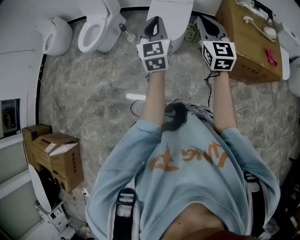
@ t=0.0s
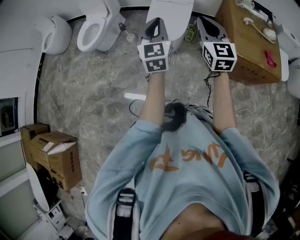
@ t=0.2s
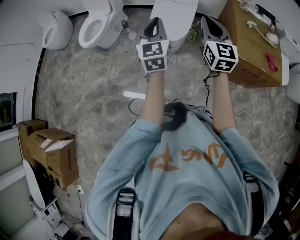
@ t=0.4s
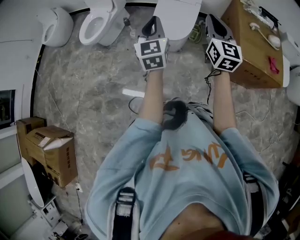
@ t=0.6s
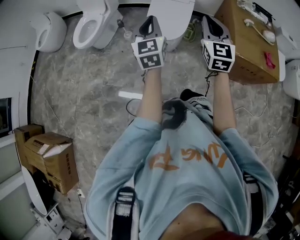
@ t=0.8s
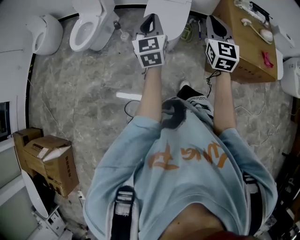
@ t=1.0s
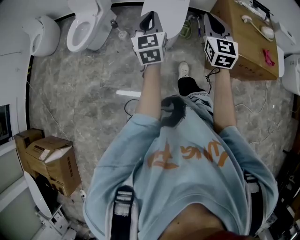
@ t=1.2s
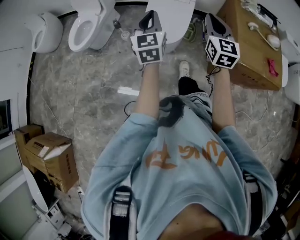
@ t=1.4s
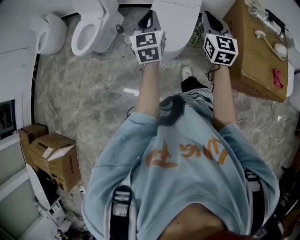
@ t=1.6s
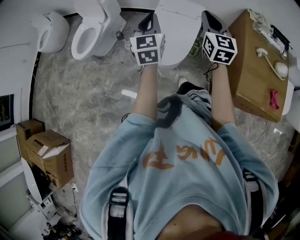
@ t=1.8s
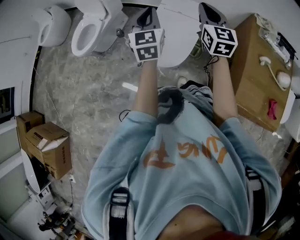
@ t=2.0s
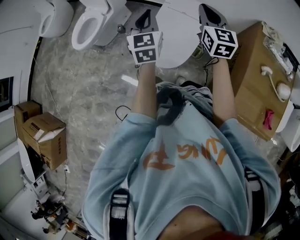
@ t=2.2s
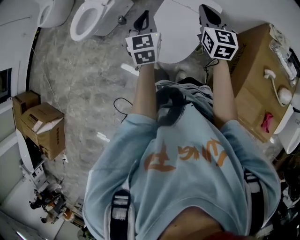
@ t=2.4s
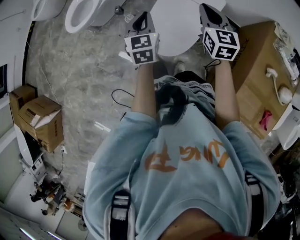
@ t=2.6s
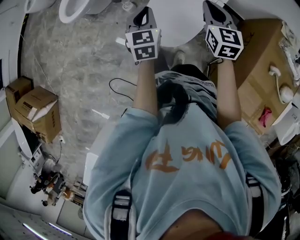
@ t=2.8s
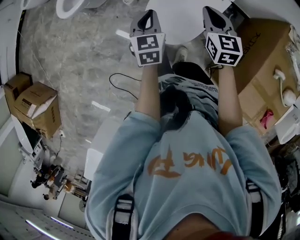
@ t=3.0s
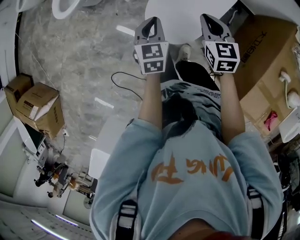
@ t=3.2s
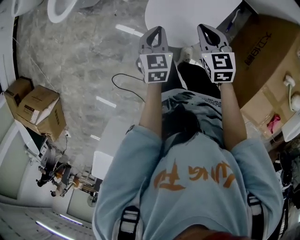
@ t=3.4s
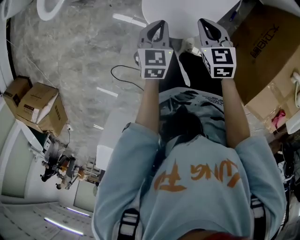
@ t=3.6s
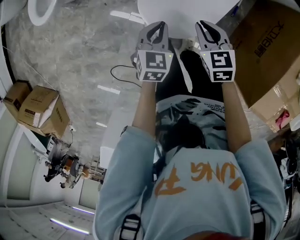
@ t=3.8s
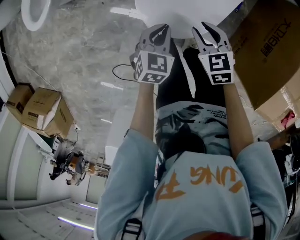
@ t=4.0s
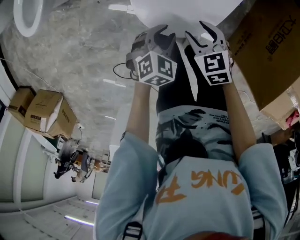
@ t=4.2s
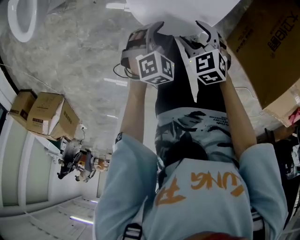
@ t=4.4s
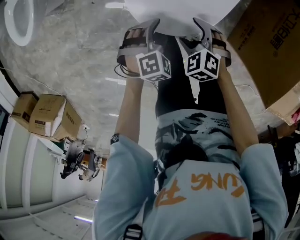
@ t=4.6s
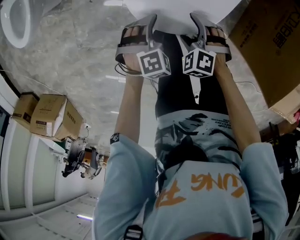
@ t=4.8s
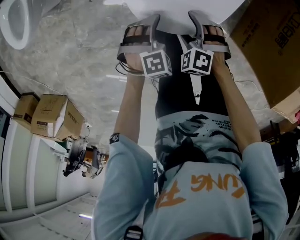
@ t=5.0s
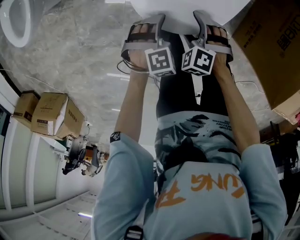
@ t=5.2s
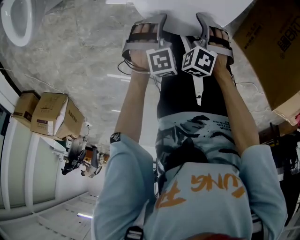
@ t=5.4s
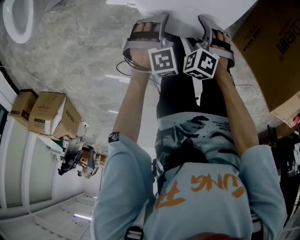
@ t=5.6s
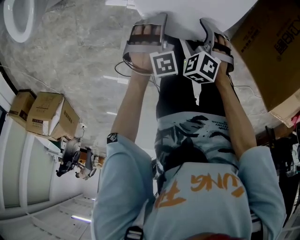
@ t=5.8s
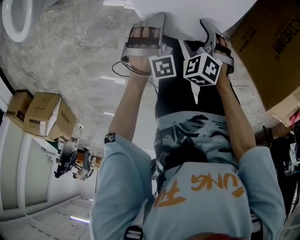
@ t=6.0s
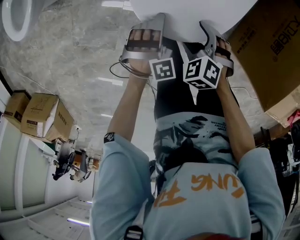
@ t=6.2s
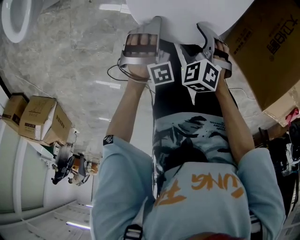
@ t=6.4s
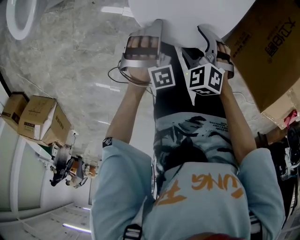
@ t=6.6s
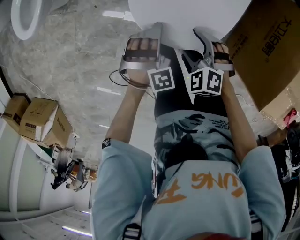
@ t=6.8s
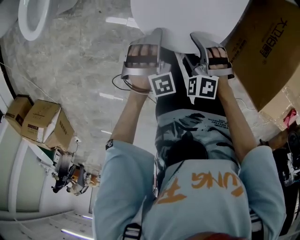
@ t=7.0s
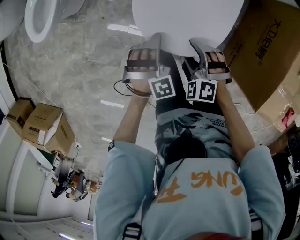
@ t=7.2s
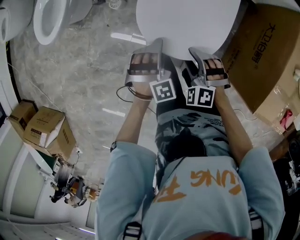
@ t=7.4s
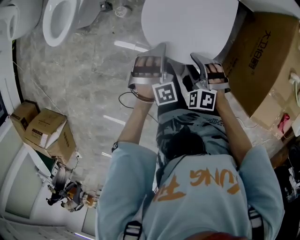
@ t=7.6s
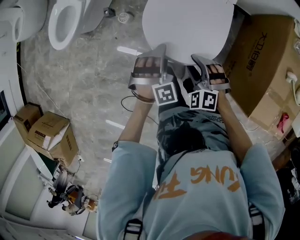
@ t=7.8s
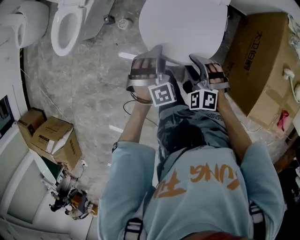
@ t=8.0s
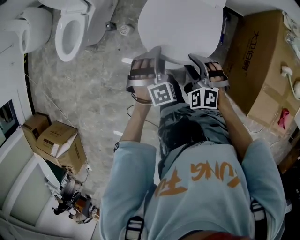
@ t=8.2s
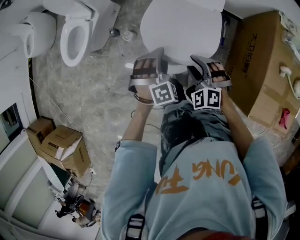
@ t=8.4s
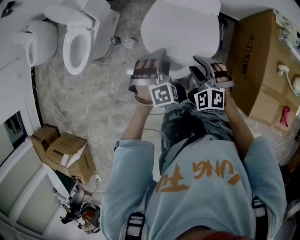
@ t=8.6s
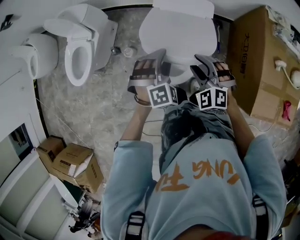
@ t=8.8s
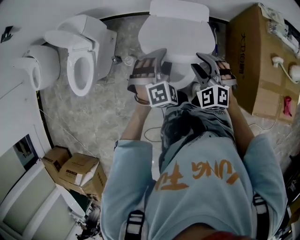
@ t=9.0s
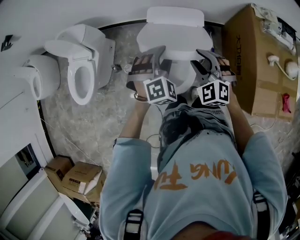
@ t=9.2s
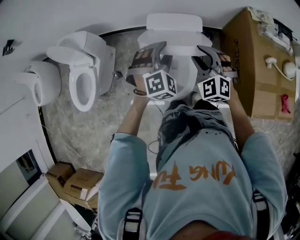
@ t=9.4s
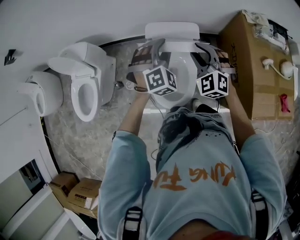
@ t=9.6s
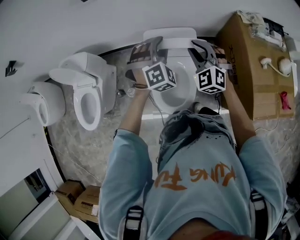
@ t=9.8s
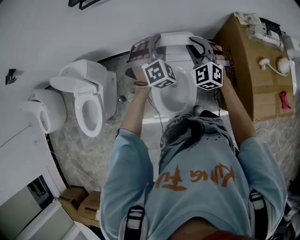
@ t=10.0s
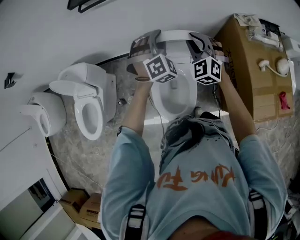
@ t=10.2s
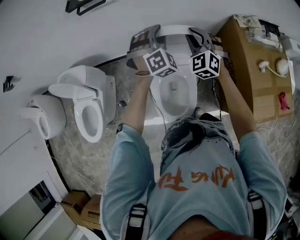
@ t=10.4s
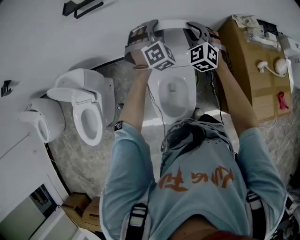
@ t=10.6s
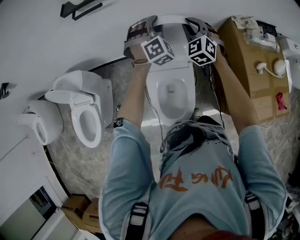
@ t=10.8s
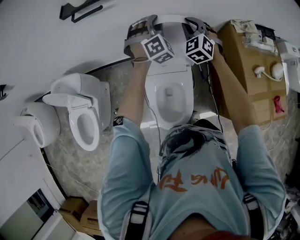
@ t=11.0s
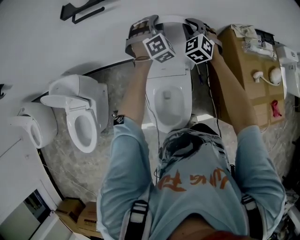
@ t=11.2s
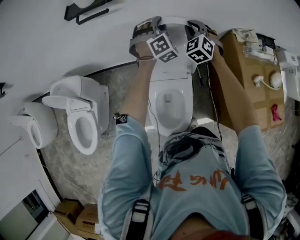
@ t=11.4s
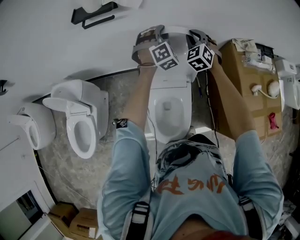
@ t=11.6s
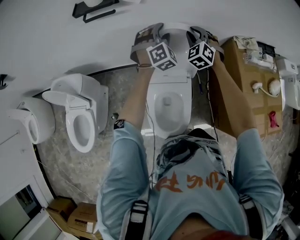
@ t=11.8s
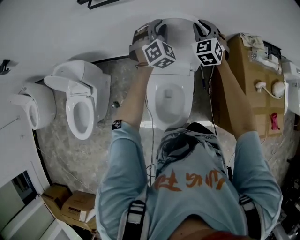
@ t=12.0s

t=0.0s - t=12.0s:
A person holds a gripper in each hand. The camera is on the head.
t=0.0s - t=1.6s: Both grippers move forward, approximately 20 cm.
t=1.6s - t=3.0s: The right gripper goes about 30 cm forward and downward, and swivels approximately 30 degrees. The left gripper travels downward and forward by about 30 cm, and turns by approximately 30 degrees.
t=3.0s - t=4.4s: Both grippers move downward, about 30 cm. The left gripper points its fingers about 30 degrees further downward, and opens up; the right gripper angles its fingers downward, by about 30 degrees, and opens its fingers.
t=4.4s - t=6.0s: The right gripper changes its angle by some 20 degrees. The left gripper shifts by approximately 5 cm, and turns by about 30 degrees.
t=6.0s - t=7.6s: Both grippers move upward, roughly 20 cm. The right gripper rotates roughly 30 degrees, and closes up.
t=7.6s - t=9.0s: Both grippers travel together upward, forward and to the right, approximately 25 cm. The left gripper changes its angle by some 20 degrees. Meanwhile the right gripper rotates about 30 degrees.
t=9.0s - t=10.4s: Both grippers travel together forward, roughly 25 cm. The right gripper rotates about 30 degrees.
t=10.4s - t=12.0s: The grippers both shift forward by about 10 cm.

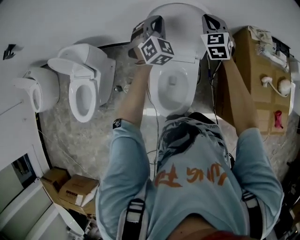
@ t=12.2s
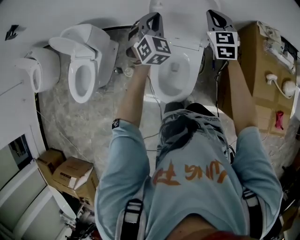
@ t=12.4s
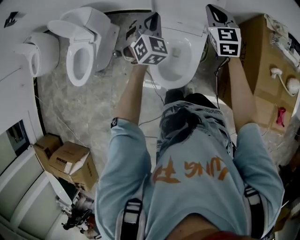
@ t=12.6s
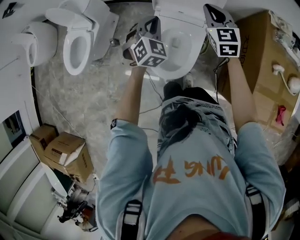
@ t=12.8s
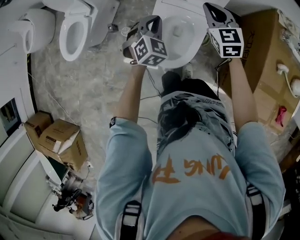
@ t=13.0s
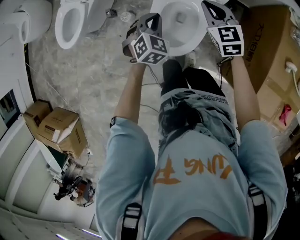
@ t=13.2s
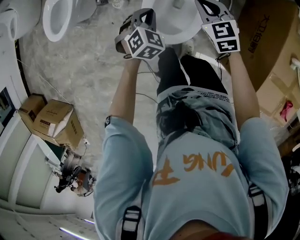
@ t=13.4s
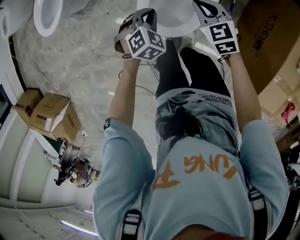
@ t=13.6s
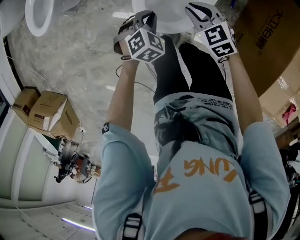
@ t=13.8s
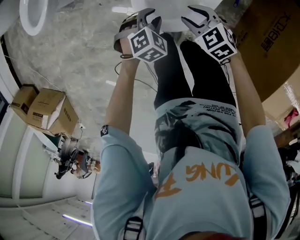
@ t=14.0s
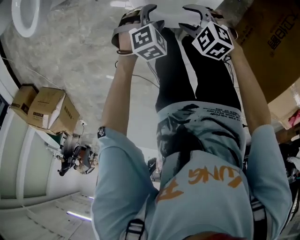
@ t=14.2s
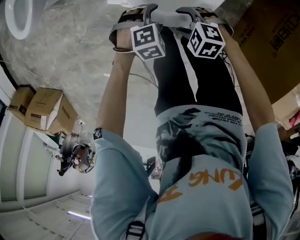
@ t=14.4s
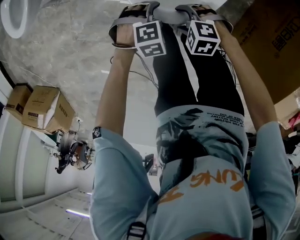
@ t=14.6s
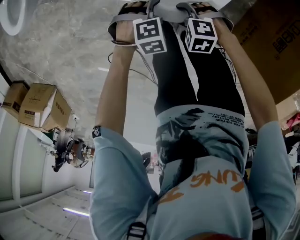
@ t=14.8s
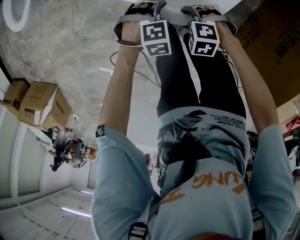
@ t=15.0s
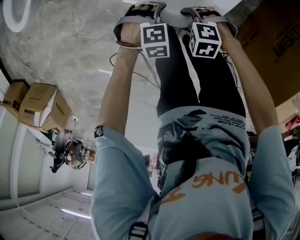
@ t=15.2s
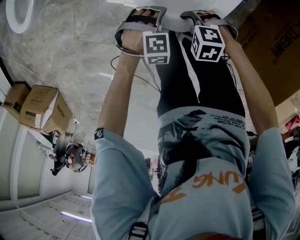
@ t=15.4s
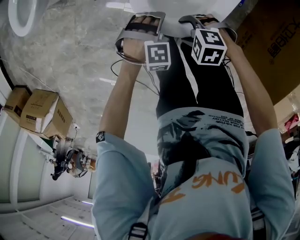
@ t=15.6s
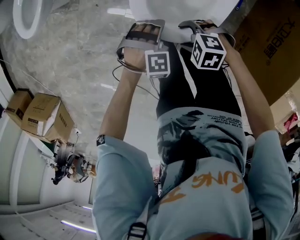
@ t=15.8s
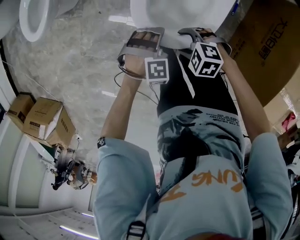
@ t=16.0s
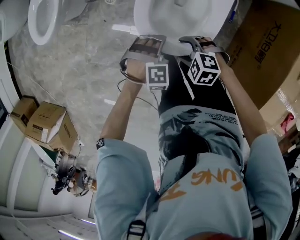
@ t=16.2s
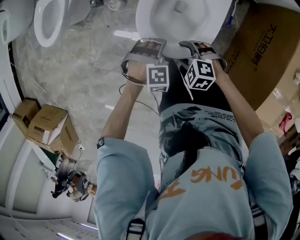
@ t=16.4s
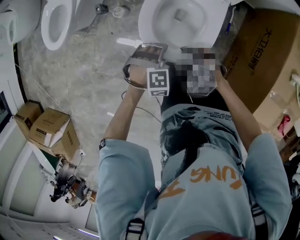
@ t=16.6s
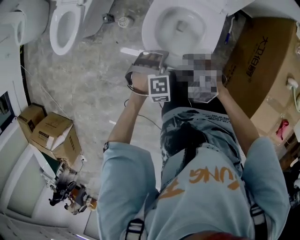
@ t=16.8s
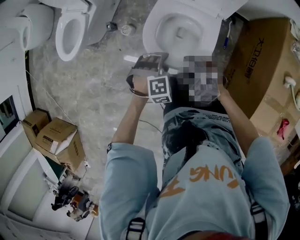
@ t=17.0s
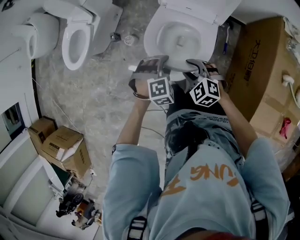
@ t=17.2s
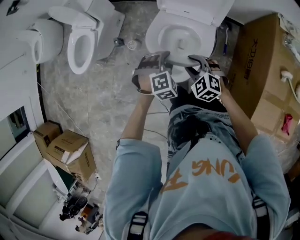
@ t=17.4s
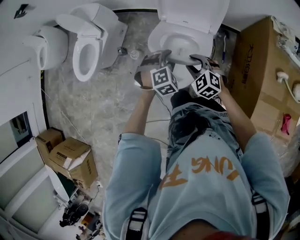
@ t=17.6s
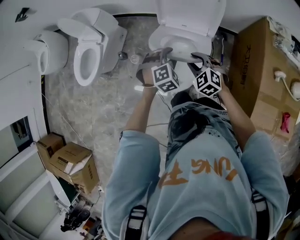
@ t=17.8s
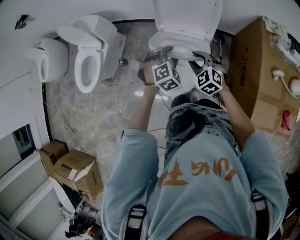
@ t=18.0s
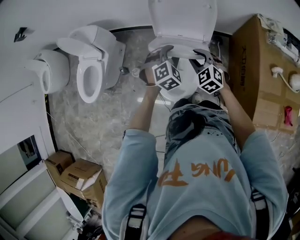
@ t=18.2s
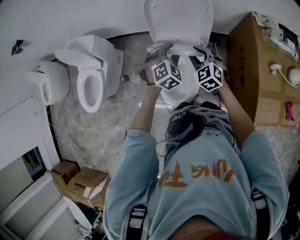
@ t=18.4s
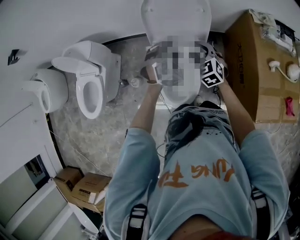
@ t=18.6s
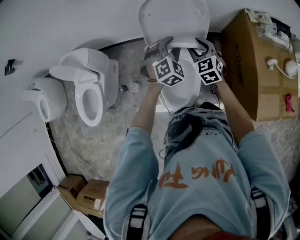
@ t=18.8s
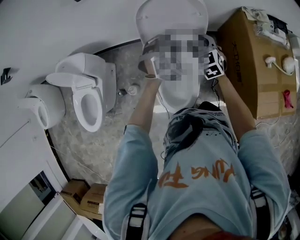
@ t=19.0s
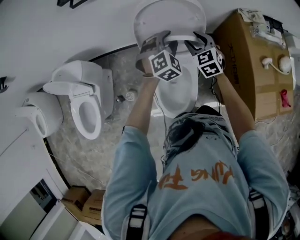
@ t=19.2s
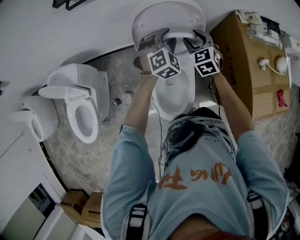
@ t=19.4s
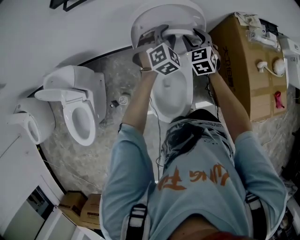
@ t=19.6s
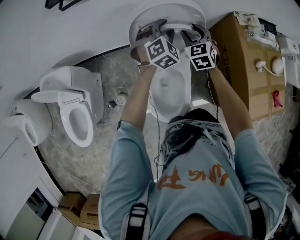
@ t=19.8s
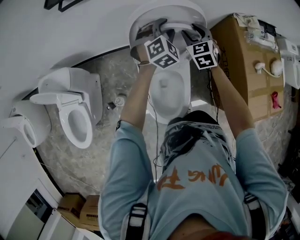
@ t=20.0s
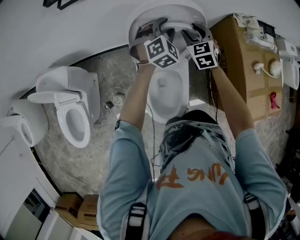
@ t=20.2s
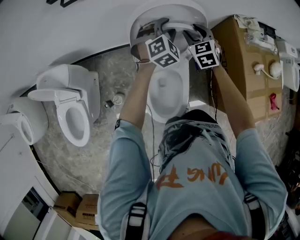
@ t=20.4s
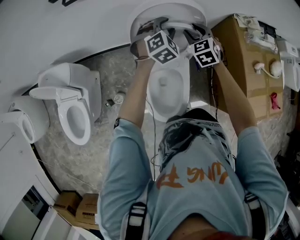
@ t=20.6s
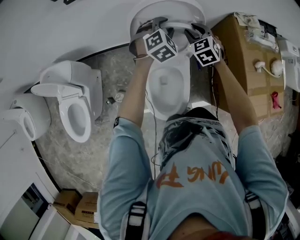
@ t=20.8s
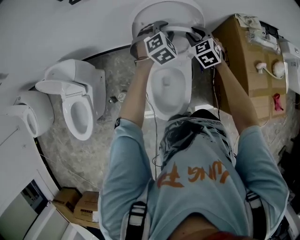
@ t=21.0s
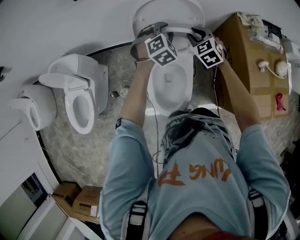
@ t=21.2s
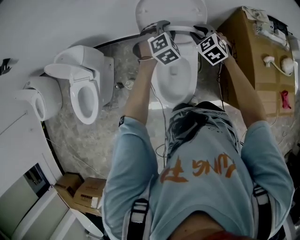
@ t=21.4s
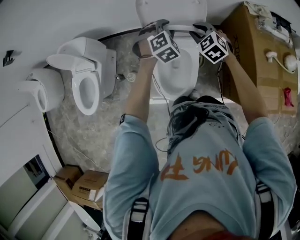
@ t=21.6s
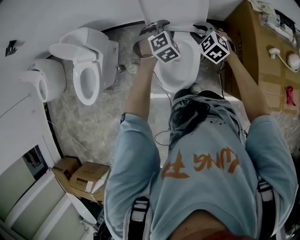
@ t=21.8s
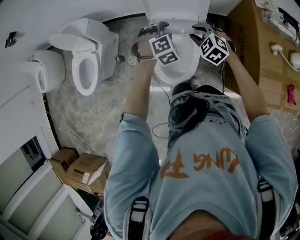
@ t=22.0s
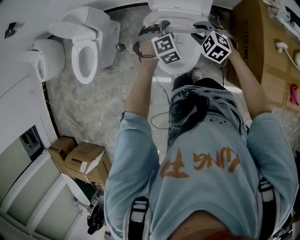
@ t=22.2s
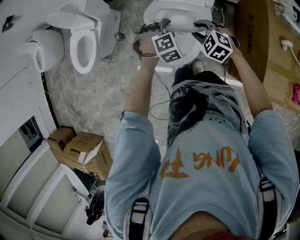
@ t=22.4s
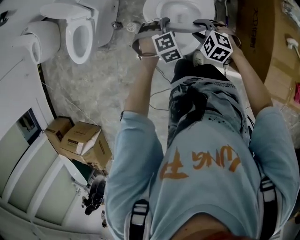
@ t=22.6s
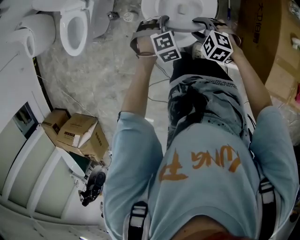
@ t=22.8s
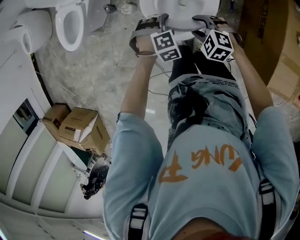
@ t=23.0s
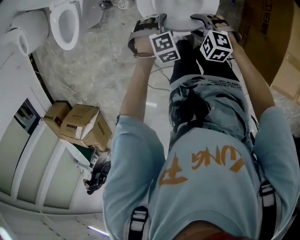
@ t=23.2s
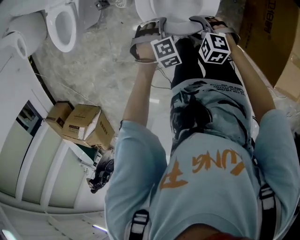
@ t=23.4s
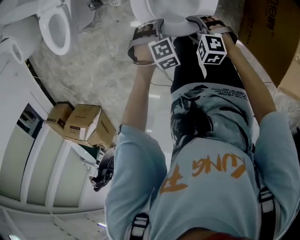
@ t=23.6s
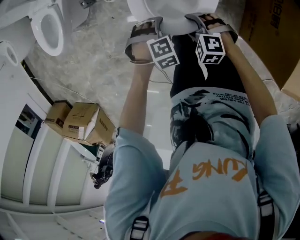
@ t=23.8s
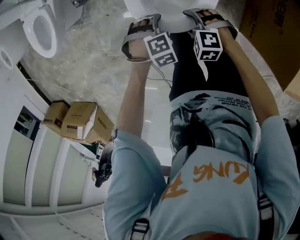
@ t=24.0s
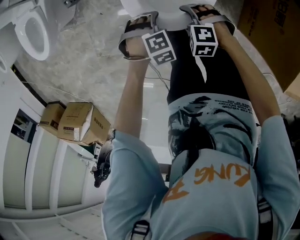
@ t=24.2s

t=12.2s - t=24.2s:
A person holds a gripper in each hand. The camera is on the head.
t=12.2s - t=13.8s: The two grippers go about 40 cm downward. The right gripper swivels roughly 50 degrees, while the left gripper angles its fingers downward, by some 40 degrees.
t=13.8s - t=15.2s: Both grippers travel together downward, some 15 cm. The right gripper rotates some 50 degrees, and opens, while the left gripper changes its angle by about 30 degrees, and opens up.
t=15.2s - t=16.6s: Both grippers move upward, about 20 cm. The left gripper changes its angle by approximately 20 degrees; the right gripper rotates roughly 20 degrees.
t=16.6s - t=18.2s: The grippers both shift upward by roughly 20 cm. The left gripper rotates approximately 30 degrees; the right gripper rotates roughly 40 degrees.
t=18.2s - t=19.8s: The right gripper ends up approximately 25 cm from where it was, and changes its angle by approximately 30 degrees. Meanwhile the left gripper moves some 25 cm.
t=19.8s - t=21.2s: The two grippers go approximately 5 cm backward.
t=21.2s - t=22.6s: The left gripper changes place by some 35 cm, and changes its angle by approximately 30 degrees. The right gripper ends up some 35 cm from where it was, and changes its angle by approximately 40 degrees.
t=22.6s - t=24.2s: Both grippers move downward, approximately 30 cm. The left gripper swivels approximately 20 degrees, and opens up; the right gripper swivels roughly 20 degrees, and opens up.
